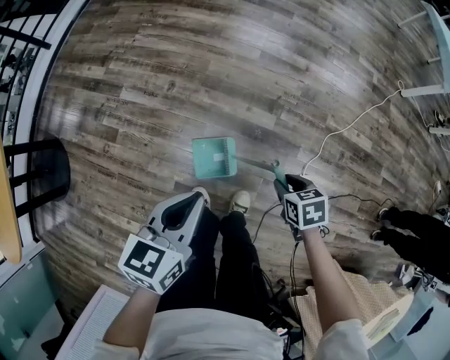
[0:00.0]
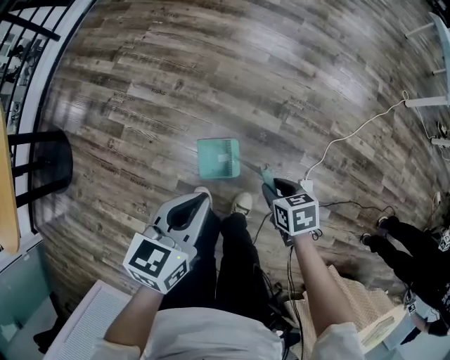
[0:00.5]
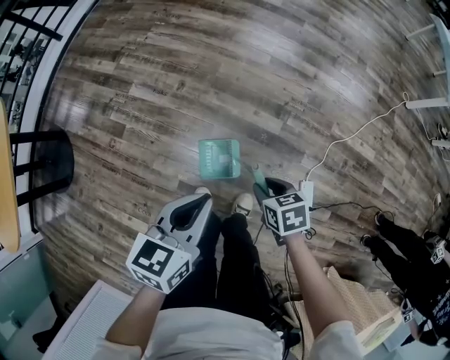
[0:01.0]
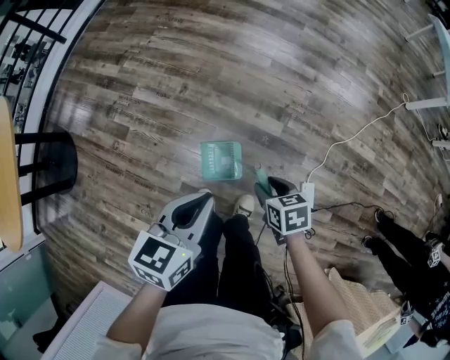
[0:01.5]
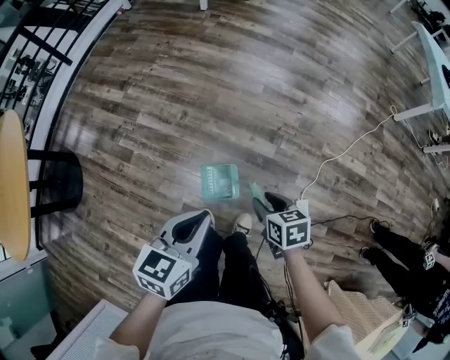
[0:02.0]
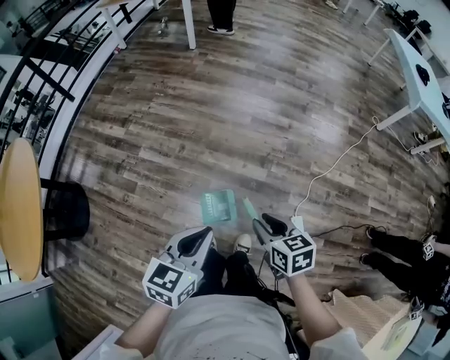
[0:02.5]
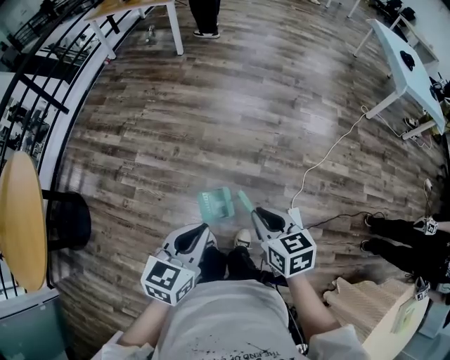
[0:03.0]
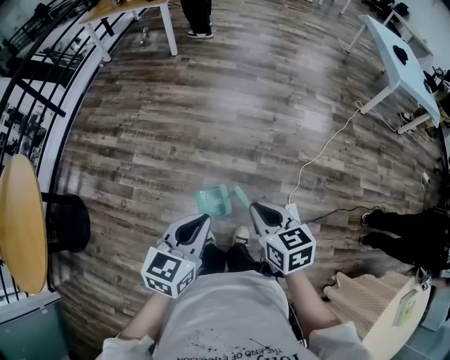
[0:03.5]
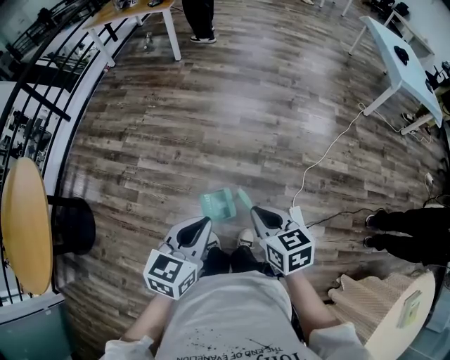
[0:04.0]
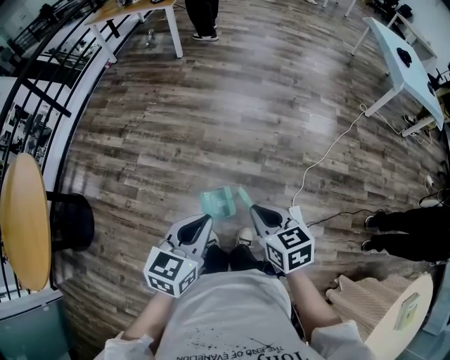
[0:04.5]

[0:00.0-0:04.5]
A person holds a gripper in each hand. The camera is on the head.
0:00.0 to 0:02.0: The right gripper is displaced upward and to the left by some 15 cm, while the left gripper goes roughly 5 cm upward.
0:02.0 to 0:04.5: The right gripper shifts about 25 cm upward, and closes its fingers. Meanwhile the left gripper is displaced upward and backward by approximately 15 cm.

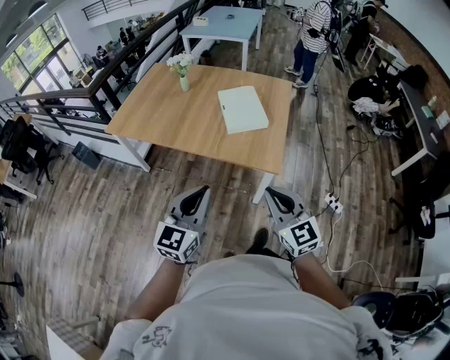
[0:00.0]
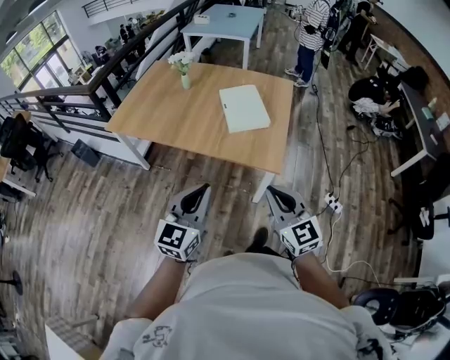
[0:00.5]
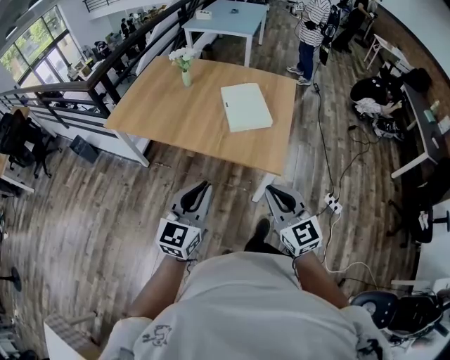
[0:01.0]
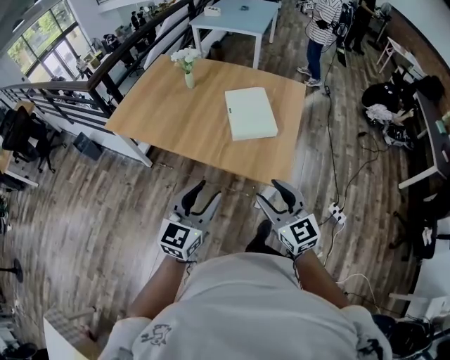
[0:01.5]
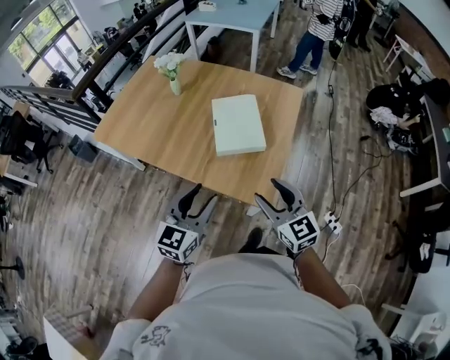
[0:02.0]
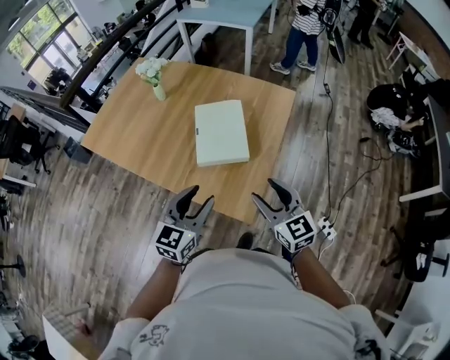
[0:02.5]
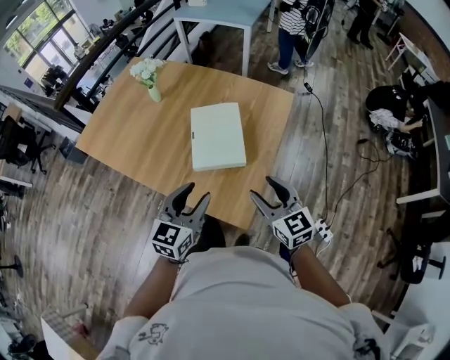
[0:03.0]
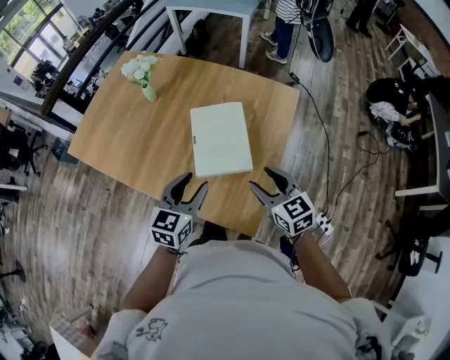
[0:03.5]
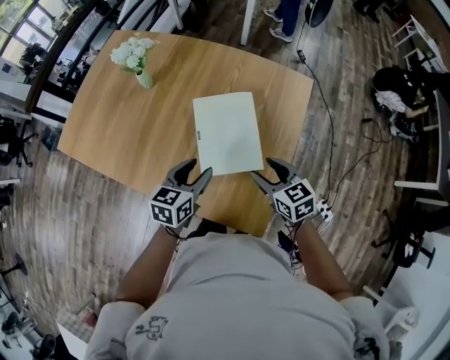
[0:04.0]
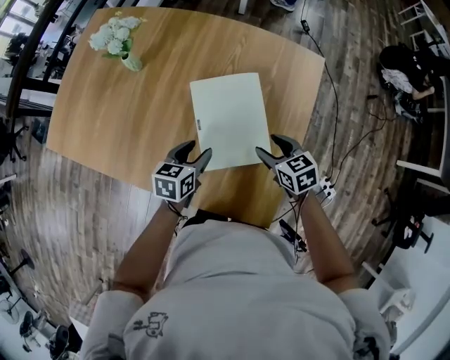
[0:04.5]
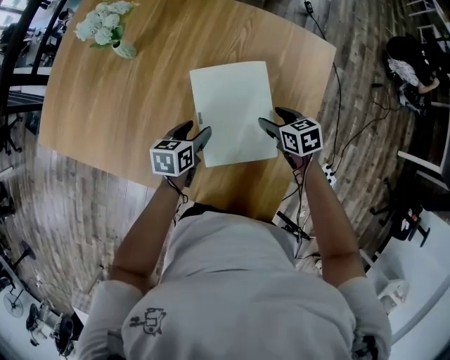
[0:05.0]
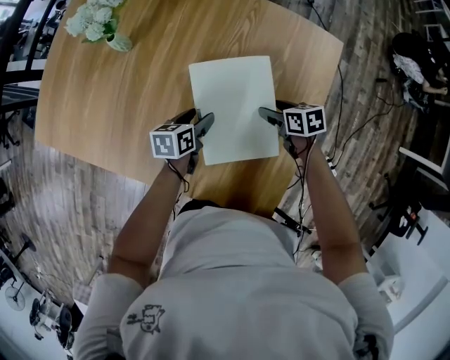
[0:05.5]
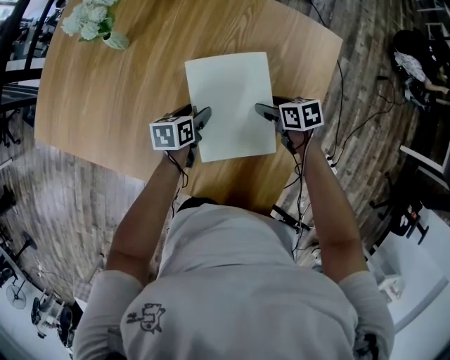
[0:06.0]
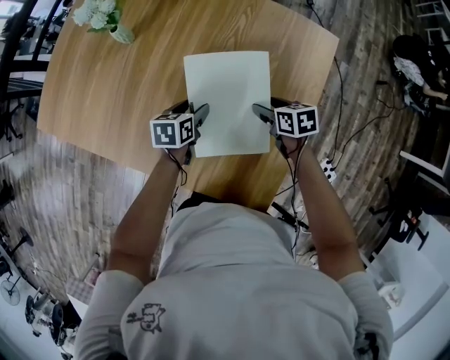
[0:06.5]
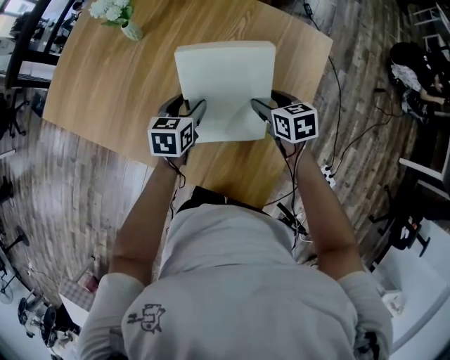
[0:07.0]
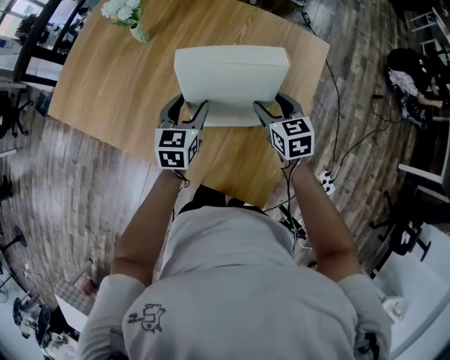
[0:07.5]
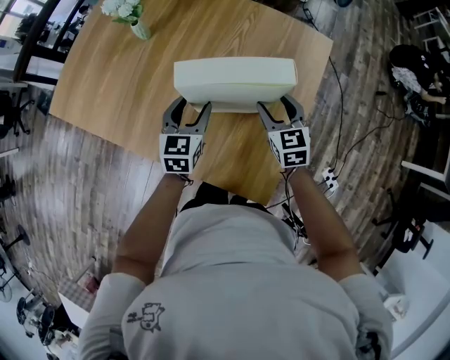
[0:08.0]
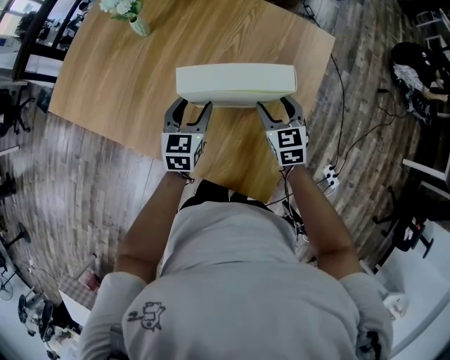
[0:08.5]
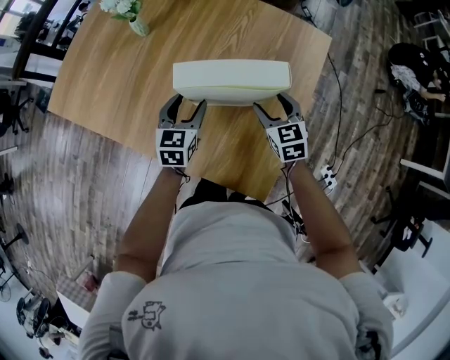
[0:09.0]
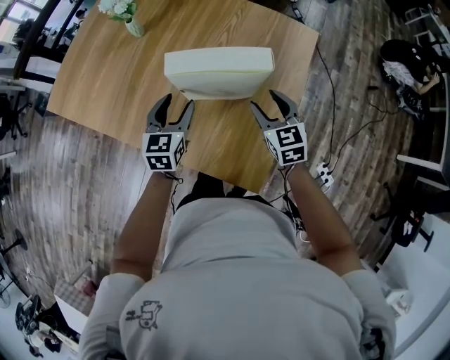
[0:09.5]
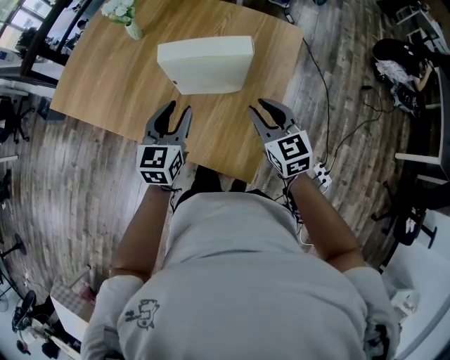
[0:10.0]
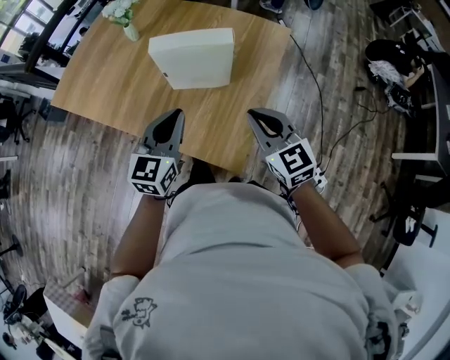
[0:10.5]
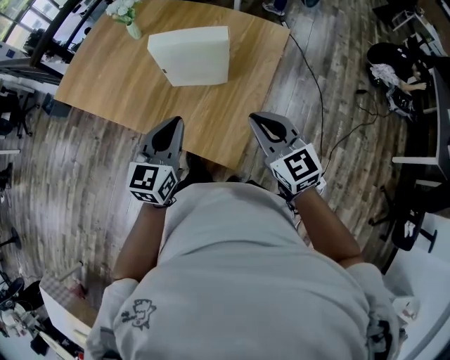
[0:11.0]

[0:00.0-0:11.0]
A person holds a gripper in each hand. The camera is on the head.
0:00.0 to 0:02.0: The right gripper heads forward, covering roughly 25 cm, and opens; the left gripper moves forward and to the right, approximately 25 cm, and opens.
0:02.0 to 0:03.5: Both grippers move forward, about 20 cm.
0:03.5 to 0:05.5: Both grippers move downward and forward, about 35 cm. The left gripper rotates about 40 degrees, while the right gripper rotates about 40 degrees.
0:05.5 to 0:07.5: The grippers both shift upward by about 15 cm. The right gripper swivels approximately 40 degrees. Meanwhile the left gripper changes its angle by approximately 40 degrees.
0:07.5 to 0:09.0: The grippers stay close to where they were, moving slightly.
0:09.0 to 0:11.0: The two grippers go approximately 30 cm backward and upward. The left gripper closes its fingers. Meanwhile the right gripper turns by some 20 degrees, and closes its fingers.

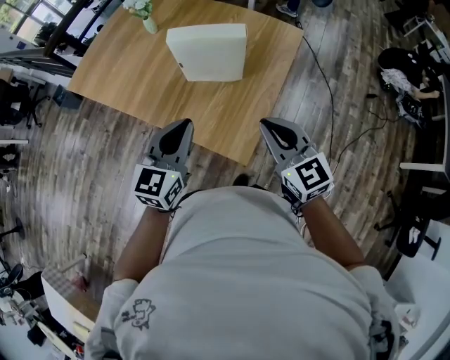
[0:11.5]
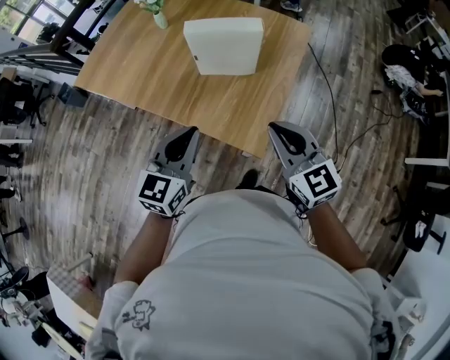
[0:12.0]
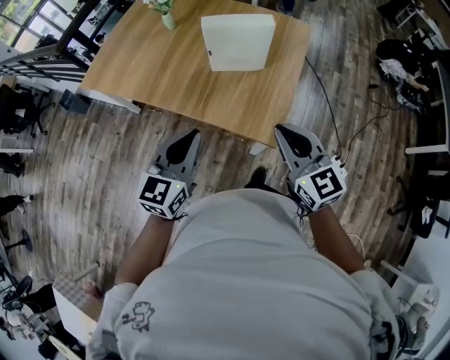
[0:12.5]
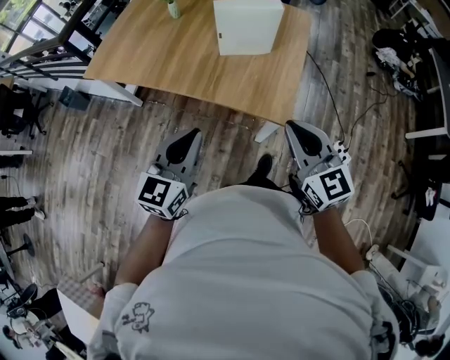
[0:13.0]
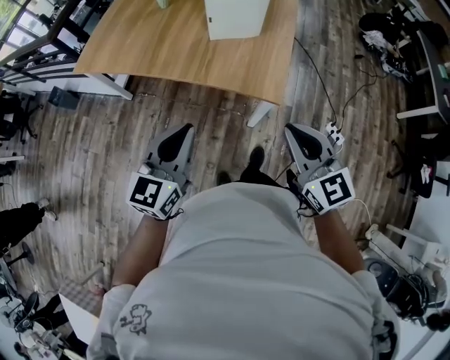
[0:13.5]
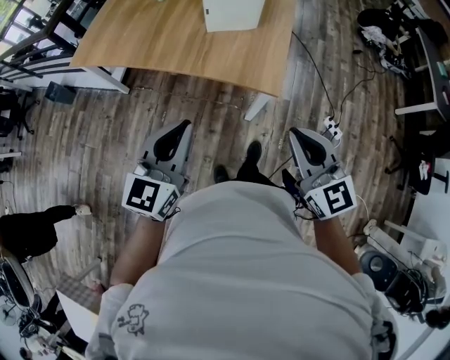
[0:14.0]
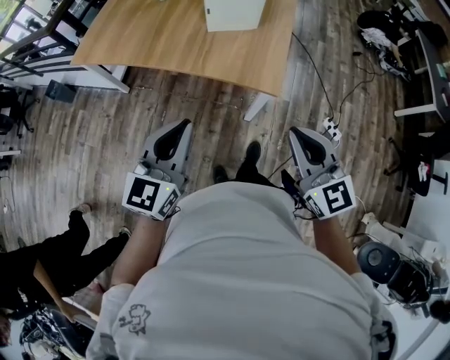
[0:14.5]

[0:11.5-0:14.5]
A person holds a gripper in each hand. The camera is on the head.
0:11.5 to 0:13.0: The right gripper shifts approximately 20 cm backward and to the left. Meanwhile the left gripper heads to the left and backward, covering approximately 25 cm.
0:13.0 to 0:14.5: Both grippers travel together backward, roughly 10 cm.

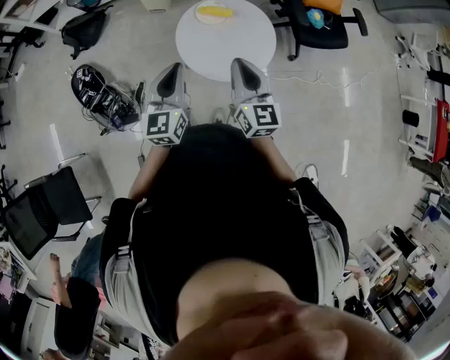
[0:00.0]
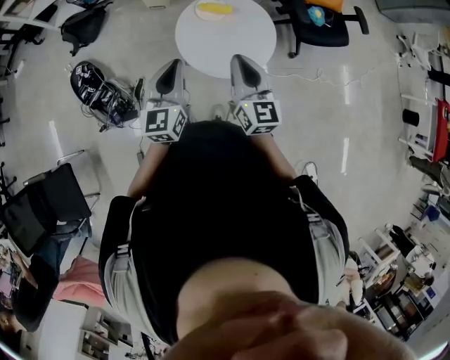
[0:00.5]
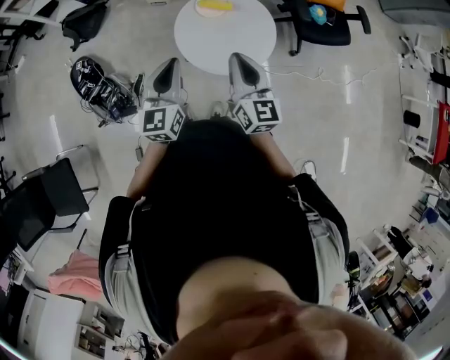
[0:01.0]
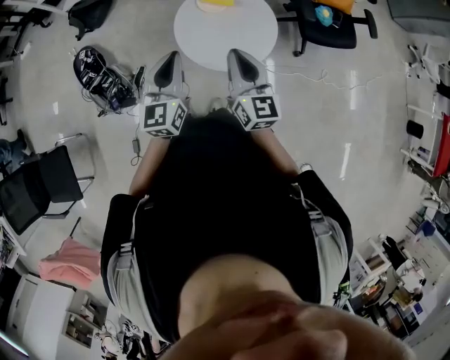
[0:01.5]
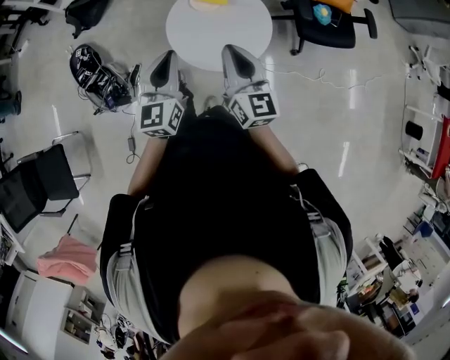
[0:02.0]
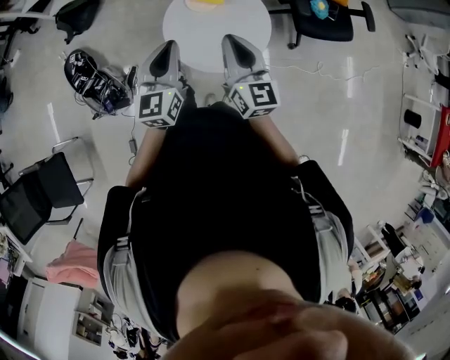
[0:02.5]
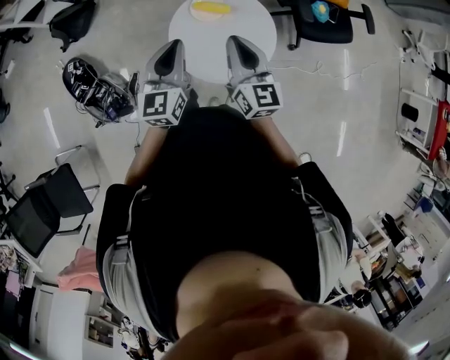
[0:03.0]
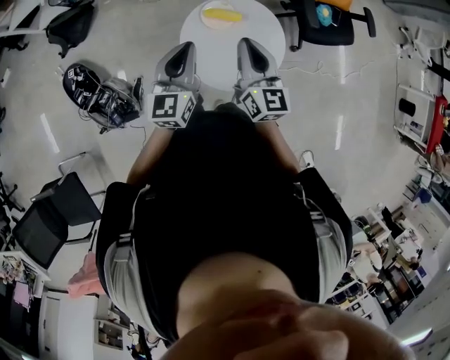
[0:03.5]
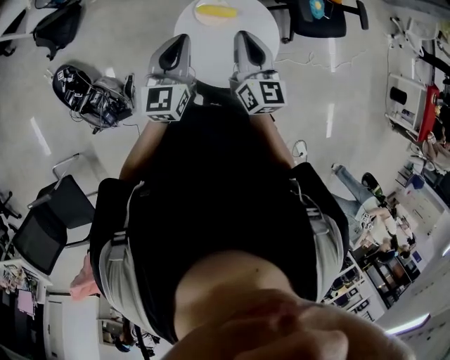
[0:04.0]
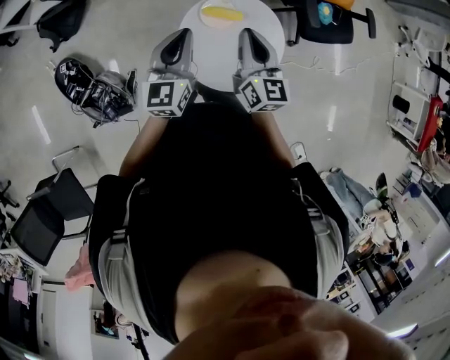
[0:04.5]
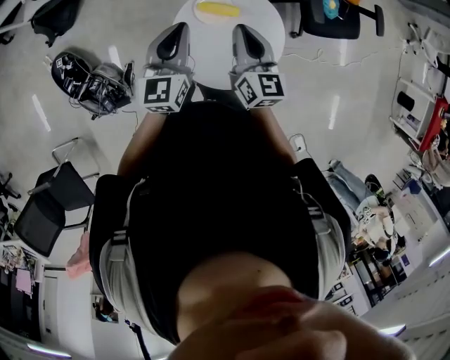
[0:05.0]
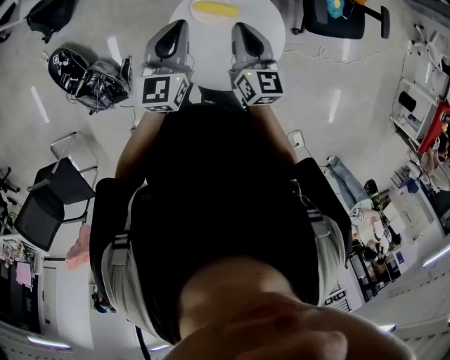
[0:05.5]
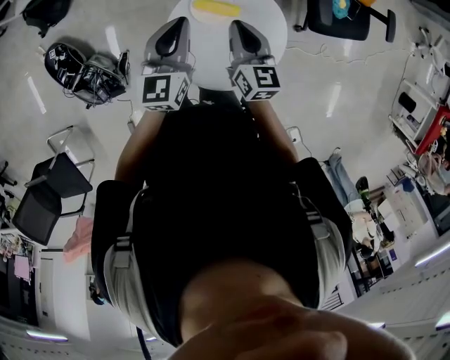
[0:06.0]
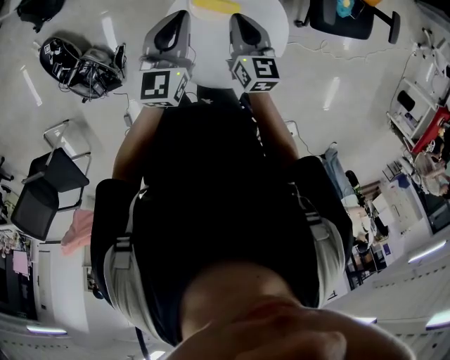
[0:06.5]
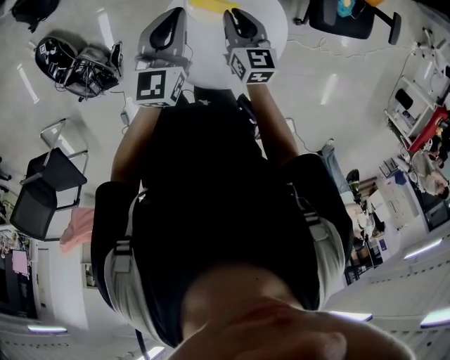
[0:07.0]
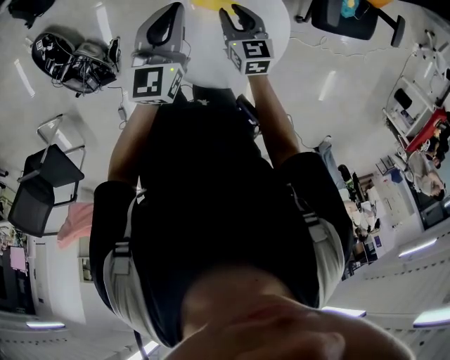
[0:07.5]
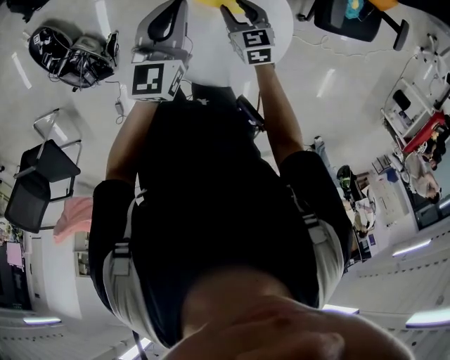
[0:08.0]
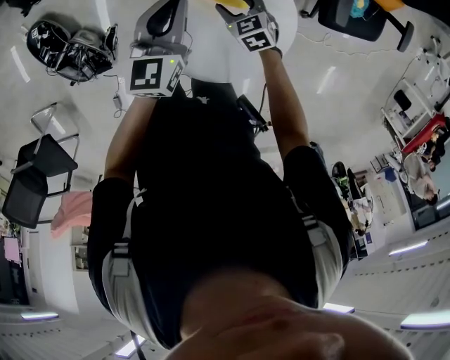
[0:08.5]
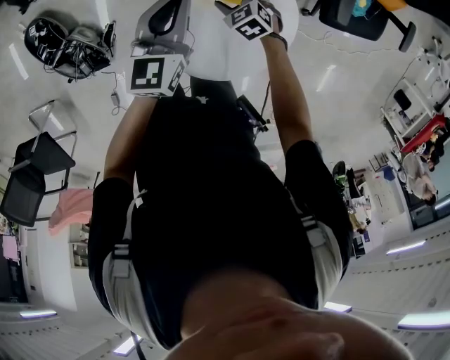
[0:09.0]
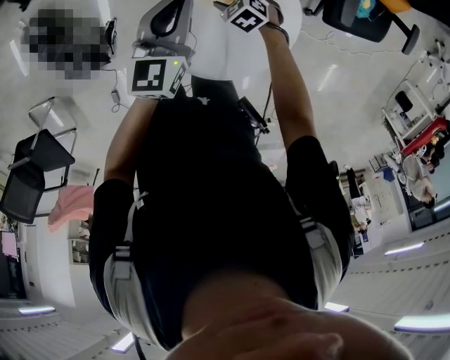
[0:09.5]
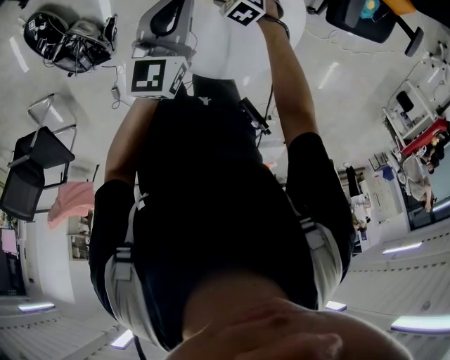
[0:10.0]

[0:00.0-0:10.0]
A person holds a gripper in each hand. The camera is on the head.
0:00.0 to 0:02.0: The left gripper goes some 5 cm to the right. The right gripper shifts by roughly 5 cm.
0:02.0 to 0:04.0: Both grippers travel together forward and to the left, approximately 20 cm.
0:04.0 to 0:06.0: The right gripper goes approximately 20 cm downward and forward. The left gripper shifts approximately 15 cm forward and downward.
0:06.0 to 0:08.0: The left gripper moves forward and downward, about 10 cm; the right gripper heads downward, covering approximately 15 cm, changes its angle by approximately 30 degrees, and opens its fingers.
0:08.0 to 0:10.0: The right gripper goes some 15 cm downward, turns by roughly 50 degrees, and opens its fingers.
